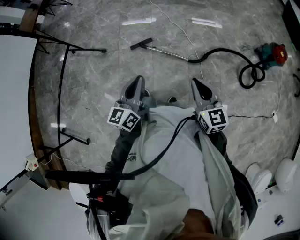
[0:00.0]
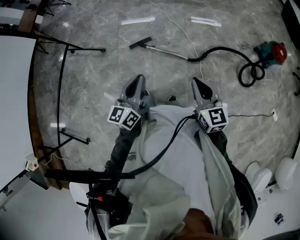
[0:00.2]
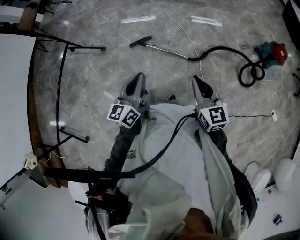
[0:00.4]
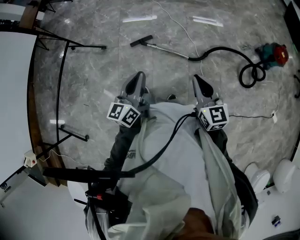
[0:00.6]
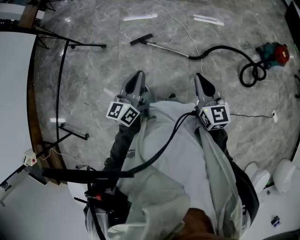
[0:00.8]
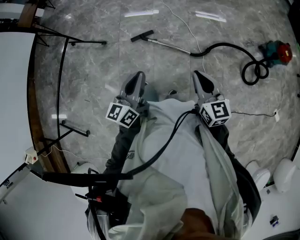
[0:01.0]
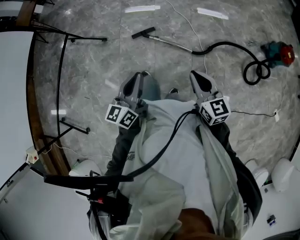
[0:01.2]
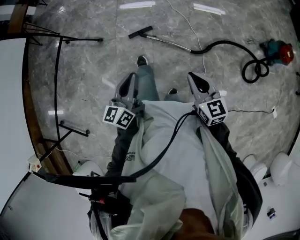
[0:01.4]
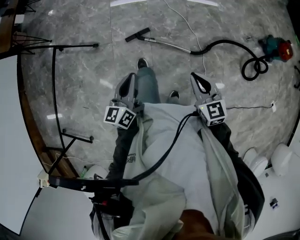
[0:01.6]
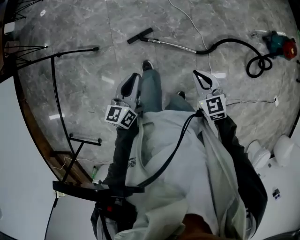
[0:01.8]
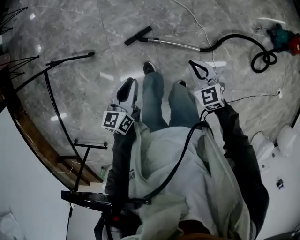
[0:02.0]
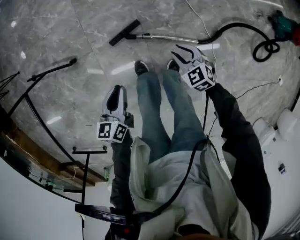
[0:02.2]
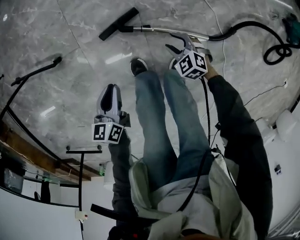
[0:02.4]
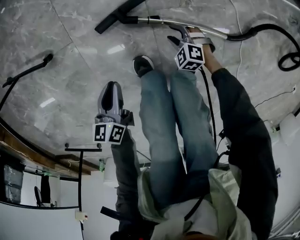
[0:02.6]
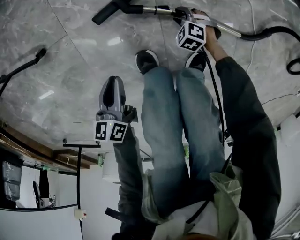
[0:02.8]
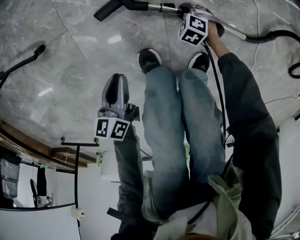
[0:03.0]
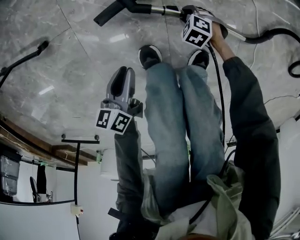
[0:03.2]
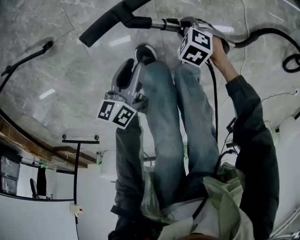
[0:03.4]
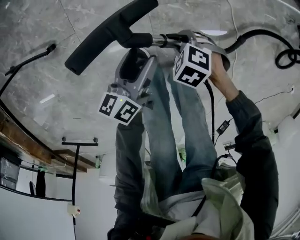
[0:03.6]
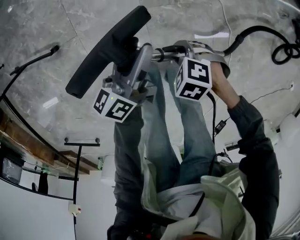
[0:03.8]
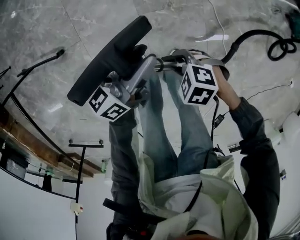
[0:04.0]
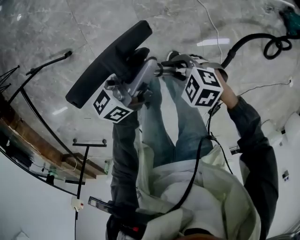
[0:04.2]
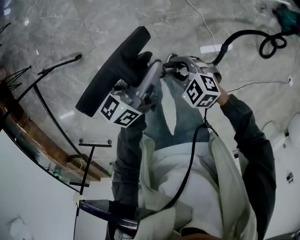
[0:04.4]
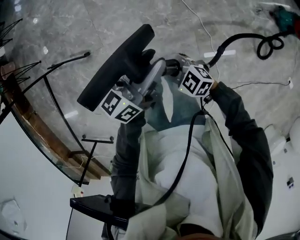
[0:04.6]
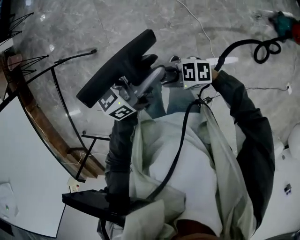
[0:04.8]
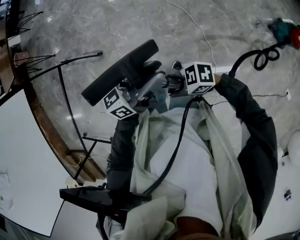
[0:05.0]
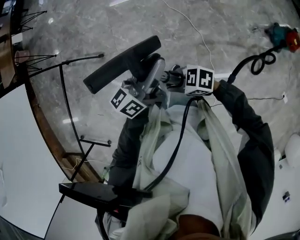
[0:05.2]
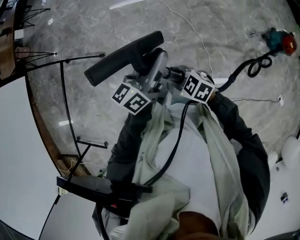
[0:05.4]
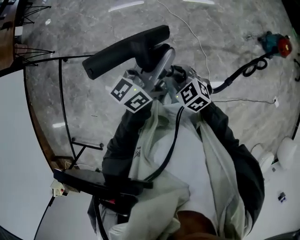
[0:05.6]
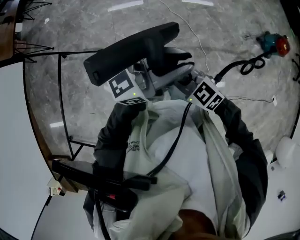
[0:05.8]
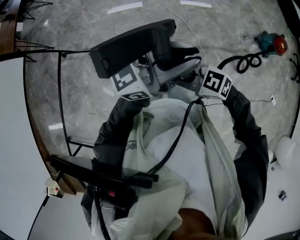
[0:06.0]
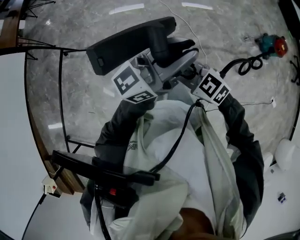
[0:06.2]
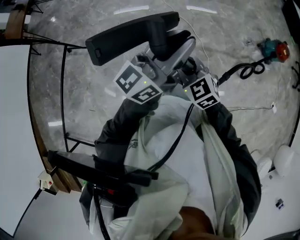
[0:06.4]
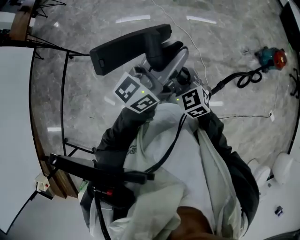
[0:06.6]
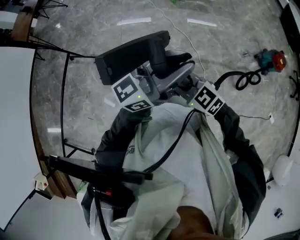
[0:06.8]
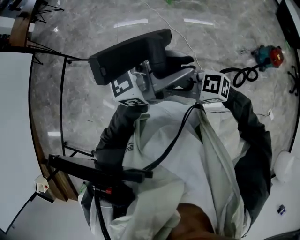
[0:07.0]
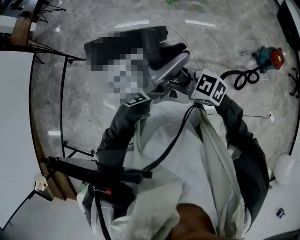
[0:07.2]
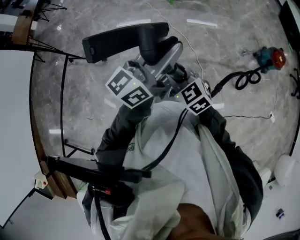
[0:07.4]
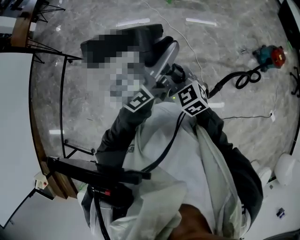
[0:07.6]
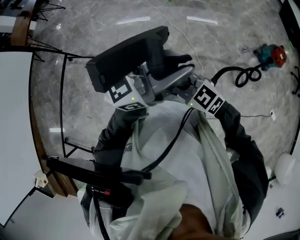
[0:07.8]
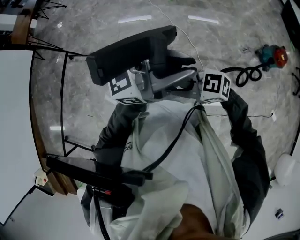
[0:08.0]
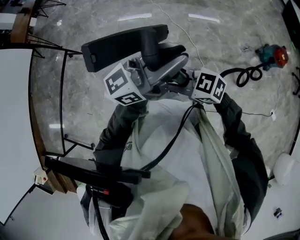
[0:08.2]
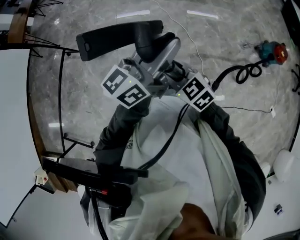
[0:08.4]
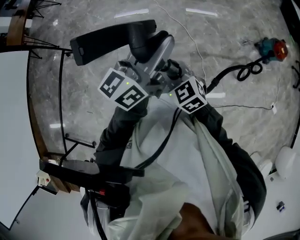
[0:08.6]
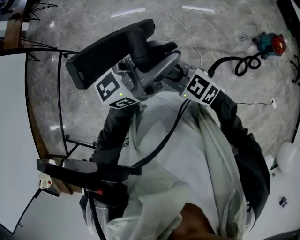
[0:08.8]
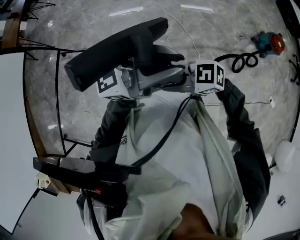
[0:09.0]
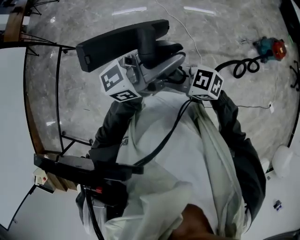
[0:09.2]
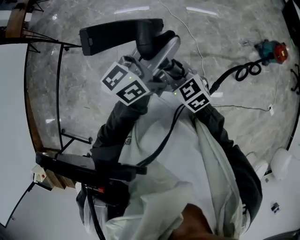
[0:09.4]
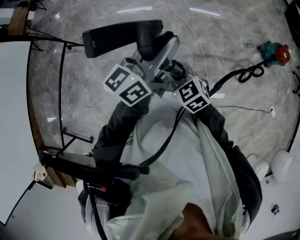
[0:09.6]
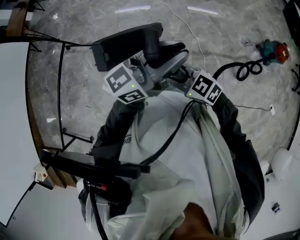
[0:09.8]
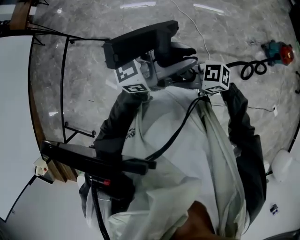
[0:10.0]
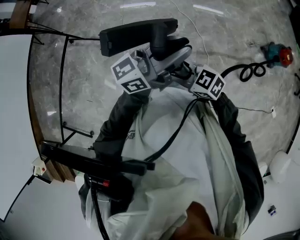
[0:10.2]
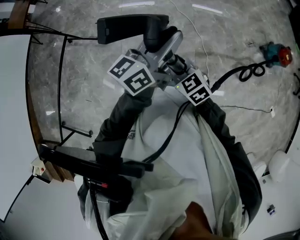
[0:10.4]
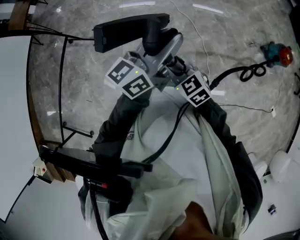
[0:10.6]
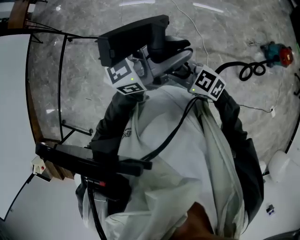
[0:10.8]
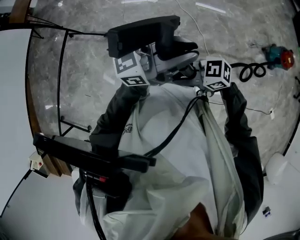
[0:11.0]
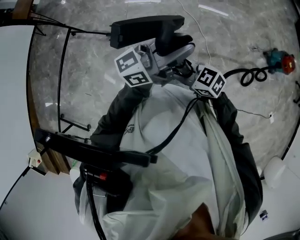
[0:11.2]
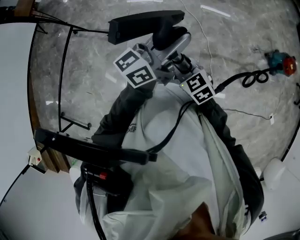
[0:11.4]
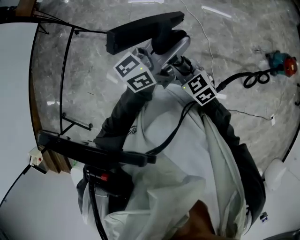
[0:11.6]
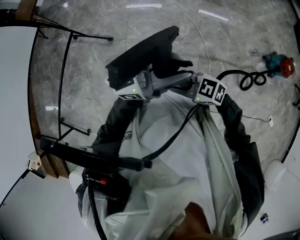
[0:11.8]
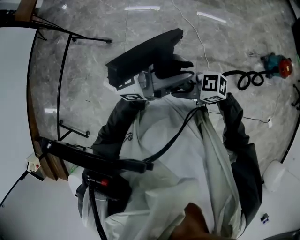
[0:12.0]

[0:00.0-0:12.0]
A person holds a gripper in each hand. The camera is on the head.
0:00.0 to 0:01.6: The right gripper goes about 15 cm forward and downward; the left gripper goes about 20 cm forward, downward and to the left.
0:01.6 to 0:03.0: The two grippers go approximately 70 cm downward. The right gripper tilts its fingers about 50 degrees downward, and opens. Meanwhile the left gripper swivels some 30 degrees.
0:03.0 to 0:04.4: Both grippers move upward, roughly 50 cm. The right gripper turns by some 30 degrees. The left gripper tips its fingers upward by some 40 degrees, and opens and closes again.
0:04.4 to 0:06.0: Both grippers move upward, roughly 35 cm. The right gripper changes its angle by some 20 degrees, and closes. The left gripper angles its fingers upward, by some 30 degrees.
0:06.0 to 0:07.6: The left gripper turns by about 30 degrees. The right gripper changes place by some 5 cm, and swivels roughly 40 degrees.
0:07.6 to 0:09.0: The left gripper changes place by approximately 10 cm, and turns by some 40 degrees. The right gripper moves approximately 10 cm, and swivels about 60 degrees.
0:09.0 to 0:10.4: The right gripper changes place by roughly 10 cm, and changes its angle by roughly 40 degrees. Meanwhile the left gripper ends up about 15 cm from where it was, and rotates roughly 50 degrees.
0:10.4 to 0:12.0: The right gripper changes place by some 10 cm, and turns by about 50 degrees. Meanwhile the left gripper swings up and down, approximately 5 cm each way, with 2 reversals, and swivels approximately 40 degrees.

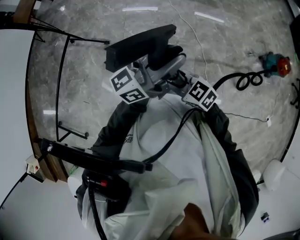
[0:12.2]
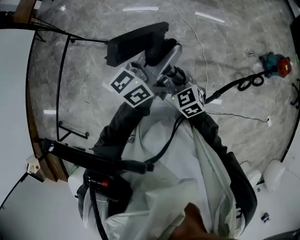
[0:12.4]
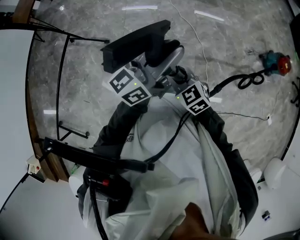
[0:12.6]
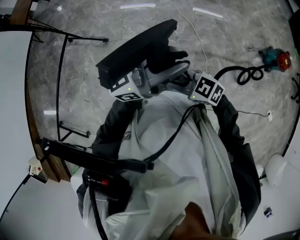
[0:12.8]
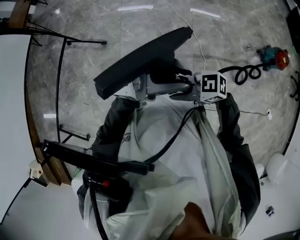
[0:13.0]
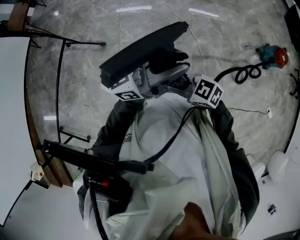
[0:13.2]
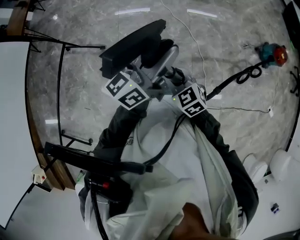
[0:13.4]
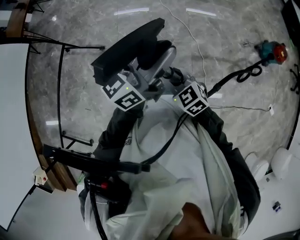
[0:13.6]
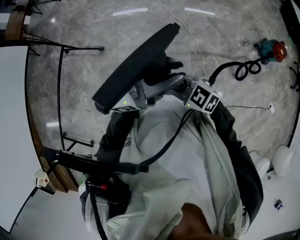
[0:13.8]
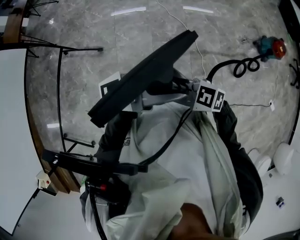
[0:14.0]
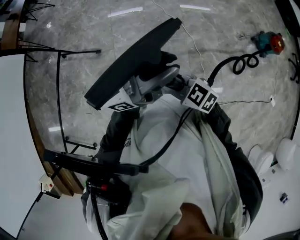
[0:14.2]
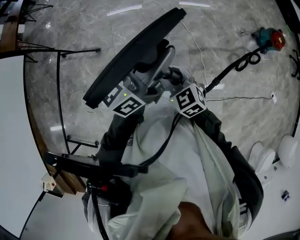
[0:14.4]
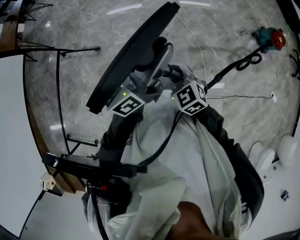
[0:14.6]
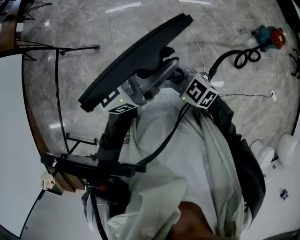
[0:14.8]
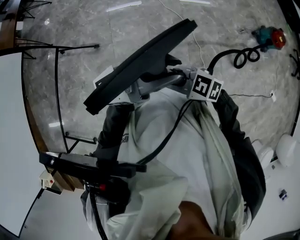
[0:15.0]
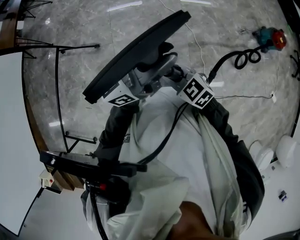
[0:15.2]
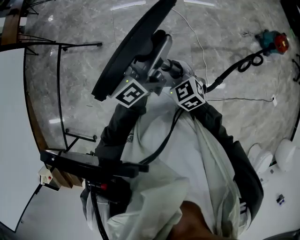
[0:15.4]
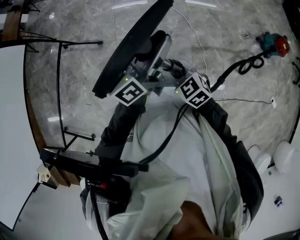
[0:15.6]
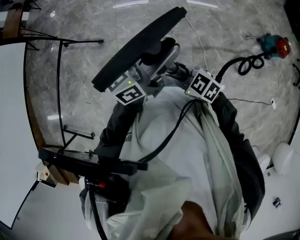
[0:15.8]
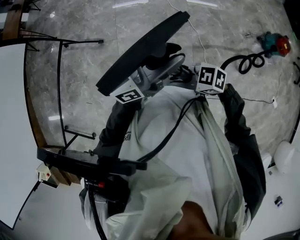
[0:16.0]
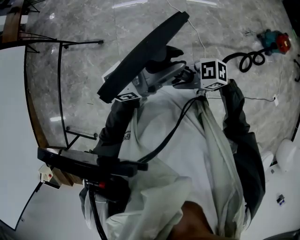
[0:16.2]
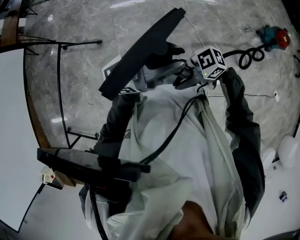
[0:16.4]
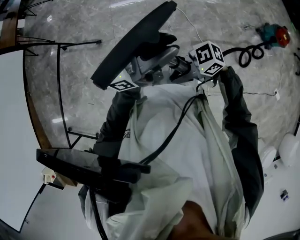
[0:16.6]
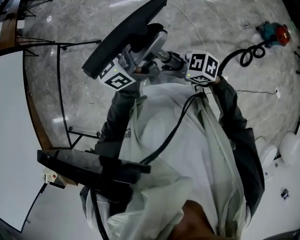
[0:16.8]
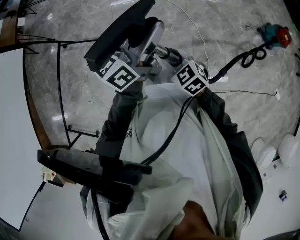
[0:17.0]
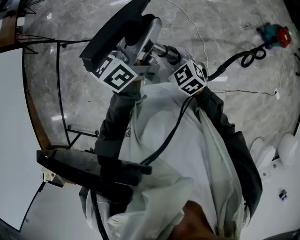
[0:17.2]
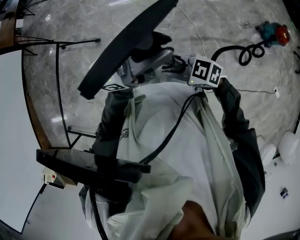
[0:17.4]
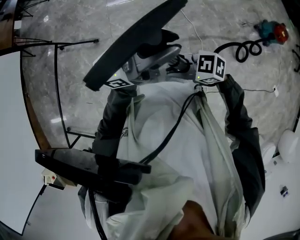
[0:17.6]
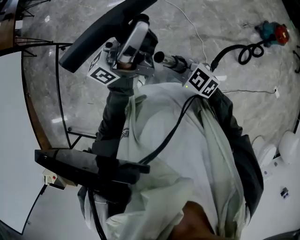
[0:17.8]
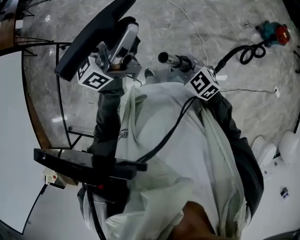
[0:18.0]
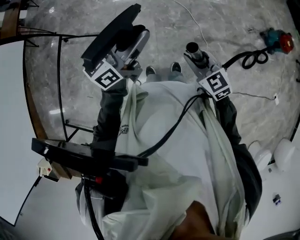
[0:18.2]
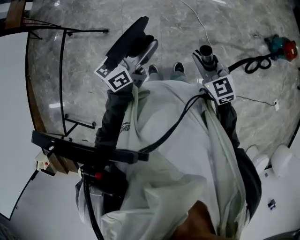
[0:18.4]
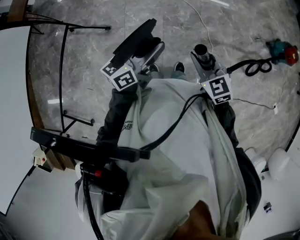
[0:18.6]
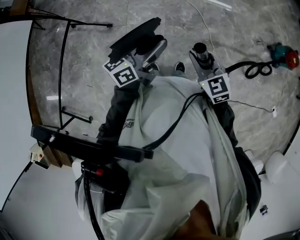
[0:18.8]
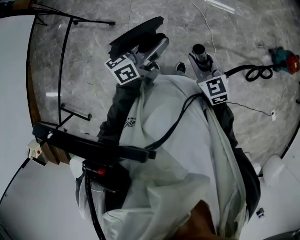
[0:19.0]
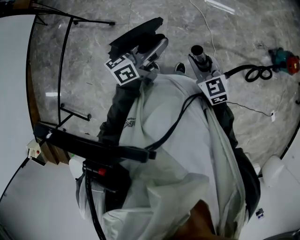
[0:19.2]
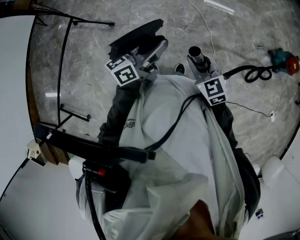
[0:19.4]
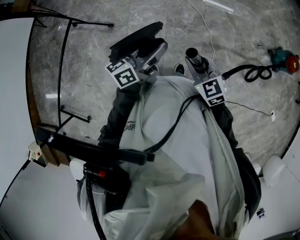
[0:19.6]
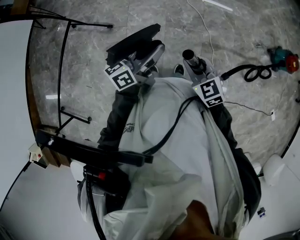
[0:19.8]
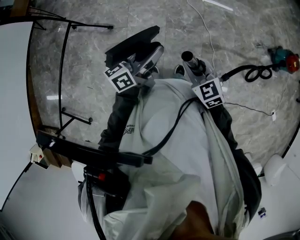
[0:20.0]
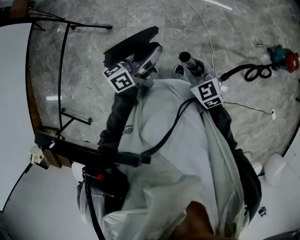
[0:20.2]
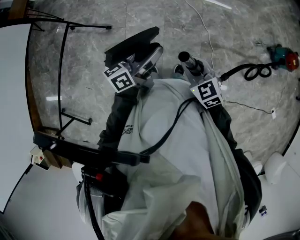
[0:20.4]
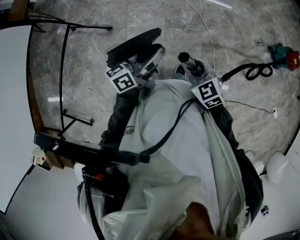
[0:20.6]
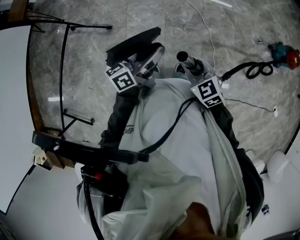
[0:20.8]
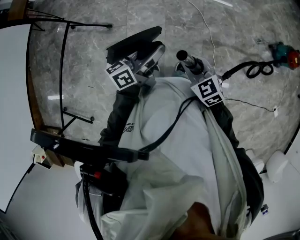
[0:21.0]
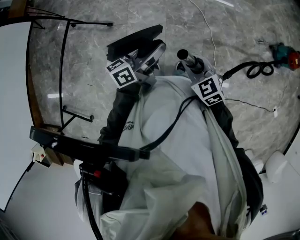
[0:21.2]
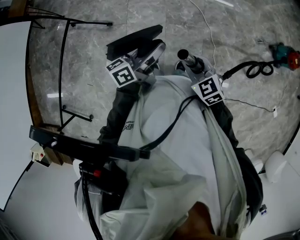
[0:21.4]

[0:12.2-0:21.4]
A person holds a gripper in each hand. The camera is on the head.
0:12.2 to 0:13.8: The left gripper changes place by about 5 cm.
0:15.2 to 0:16.8: The left gripper shifts by some 5 cm. The right gripper changes its angle by some 30 degrees.
0:16.8 to 0:18.4: The right gripper ends up some 10 cm from where it was, and turns by some 50 degrees, while the left gripper is displaced downward by approximately 10 cm, and swivels about 30 degrees.
0:18.4 to 0:19.8: The right gripper goes approximately 5 cm to the left.
0:19.8 to 0:21.4: The grippers stay close to where they were, moving slightly.

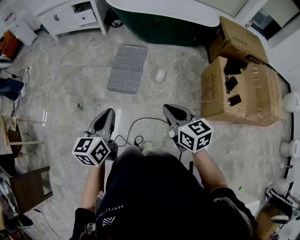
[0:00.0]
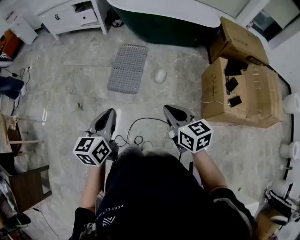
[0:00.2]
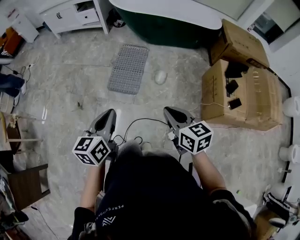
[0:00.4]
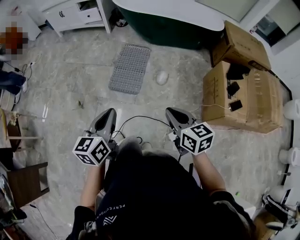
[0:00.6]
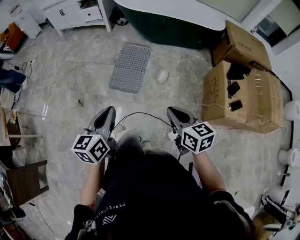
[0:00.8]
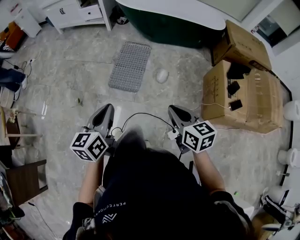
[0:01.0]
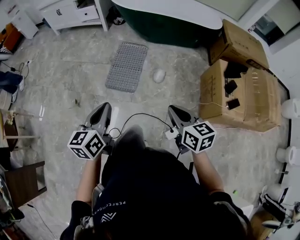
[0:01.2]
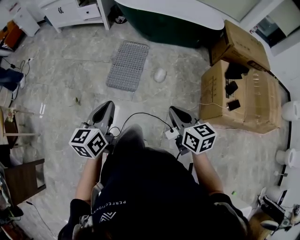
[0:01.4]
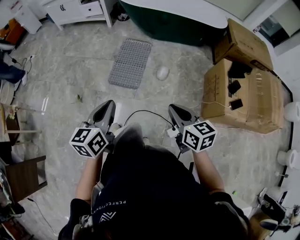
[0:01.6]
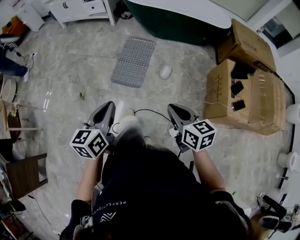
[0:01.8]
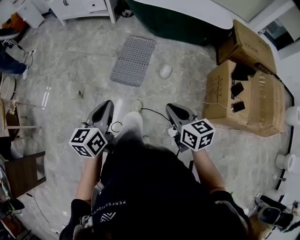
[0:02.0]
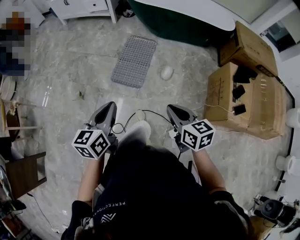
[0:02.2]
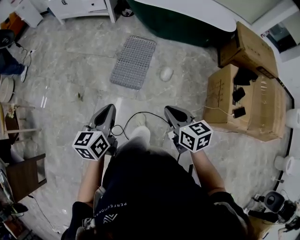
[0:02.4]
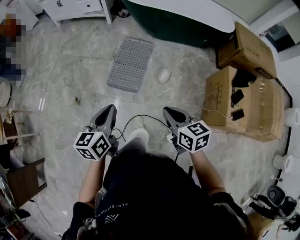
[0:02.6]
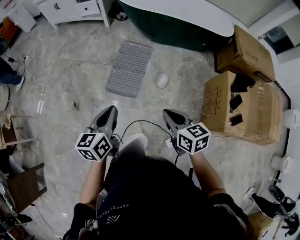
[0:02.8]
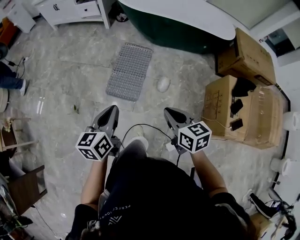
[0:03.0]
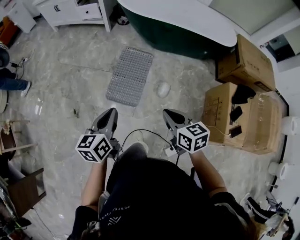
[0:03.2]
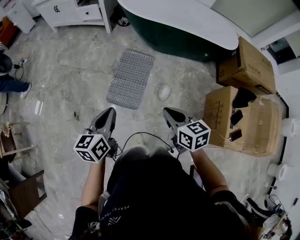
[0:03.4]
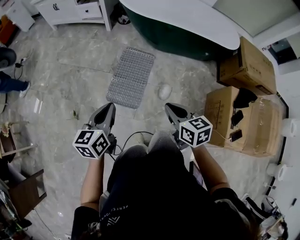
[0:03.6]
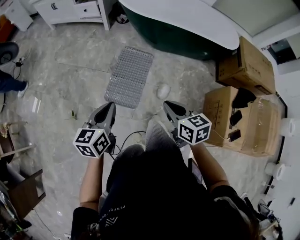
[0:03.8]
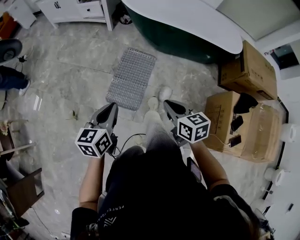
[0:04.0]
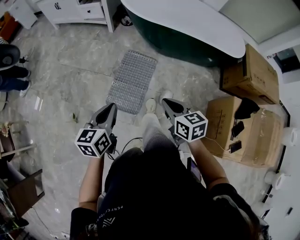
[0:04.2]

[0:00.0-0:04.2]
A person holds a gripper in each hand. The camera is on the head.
0:00.0 to 0:01.4: There are only small adjustments of the grippers.
0:01.4 to 0:02.8: Both grippers move forward, approximately 15 cm.
0:02.8 to 0:04.2: The grippers both shift forward by some 20 cm.
